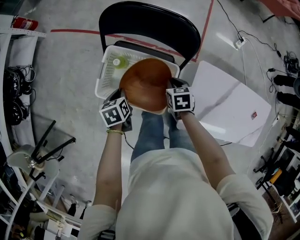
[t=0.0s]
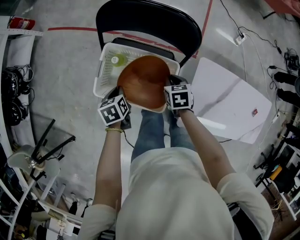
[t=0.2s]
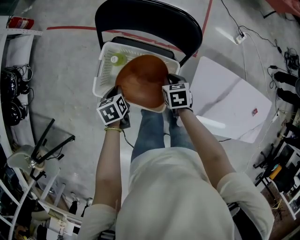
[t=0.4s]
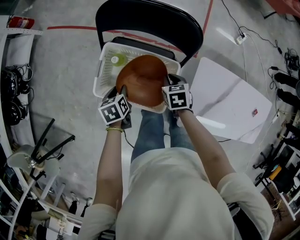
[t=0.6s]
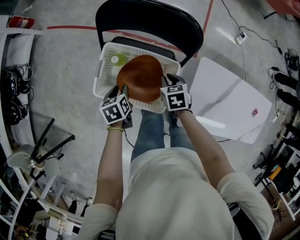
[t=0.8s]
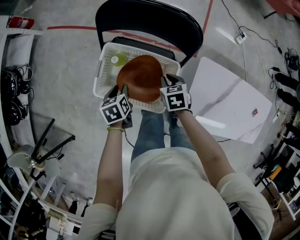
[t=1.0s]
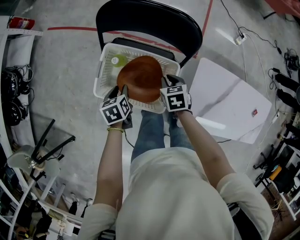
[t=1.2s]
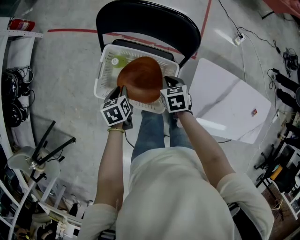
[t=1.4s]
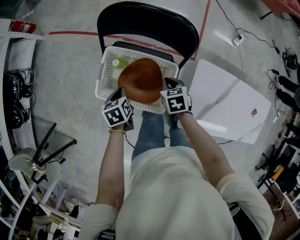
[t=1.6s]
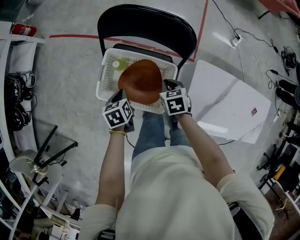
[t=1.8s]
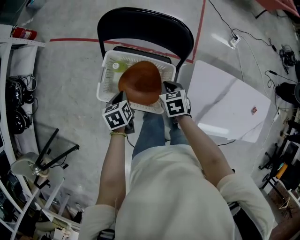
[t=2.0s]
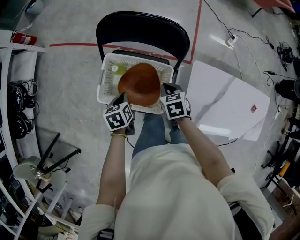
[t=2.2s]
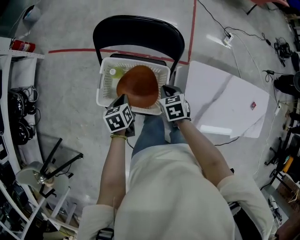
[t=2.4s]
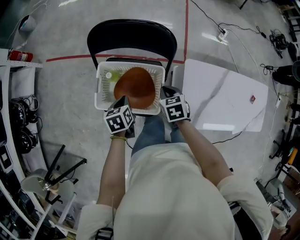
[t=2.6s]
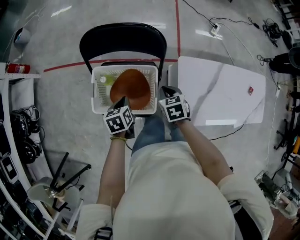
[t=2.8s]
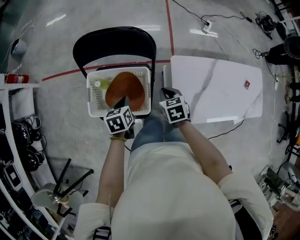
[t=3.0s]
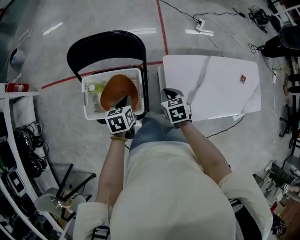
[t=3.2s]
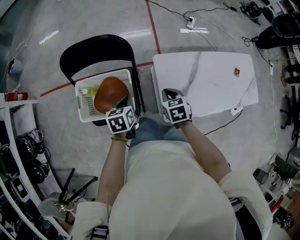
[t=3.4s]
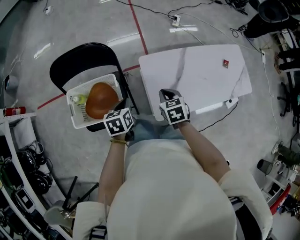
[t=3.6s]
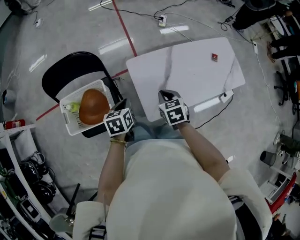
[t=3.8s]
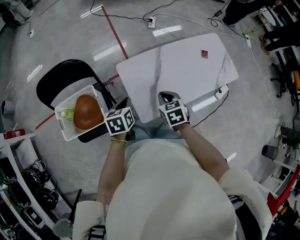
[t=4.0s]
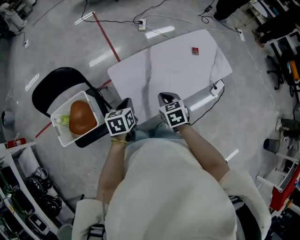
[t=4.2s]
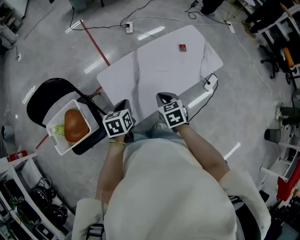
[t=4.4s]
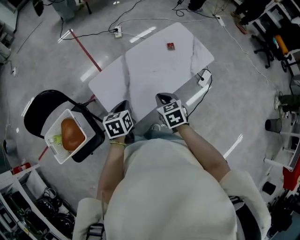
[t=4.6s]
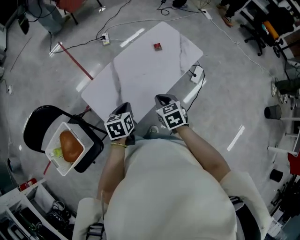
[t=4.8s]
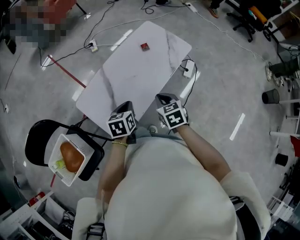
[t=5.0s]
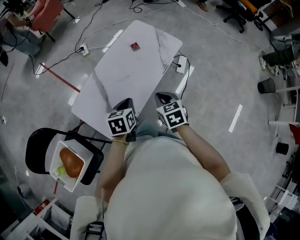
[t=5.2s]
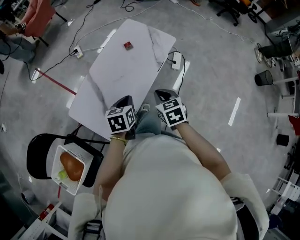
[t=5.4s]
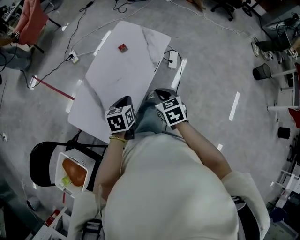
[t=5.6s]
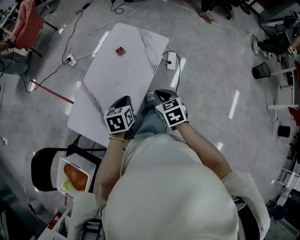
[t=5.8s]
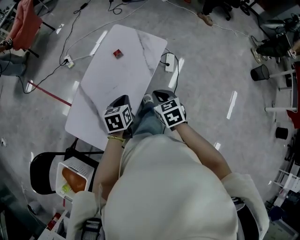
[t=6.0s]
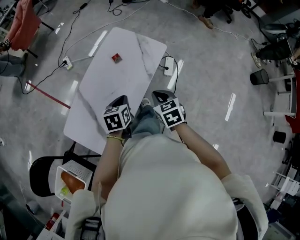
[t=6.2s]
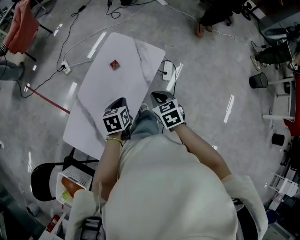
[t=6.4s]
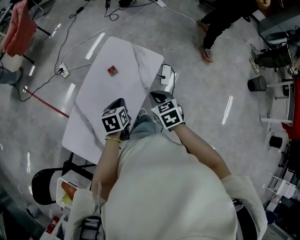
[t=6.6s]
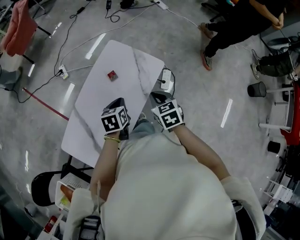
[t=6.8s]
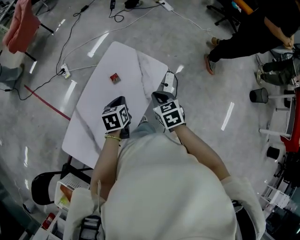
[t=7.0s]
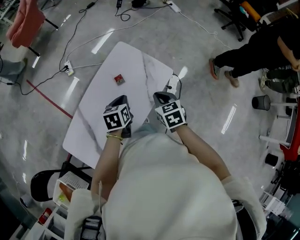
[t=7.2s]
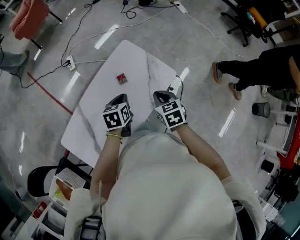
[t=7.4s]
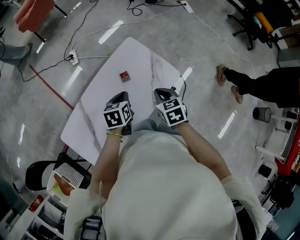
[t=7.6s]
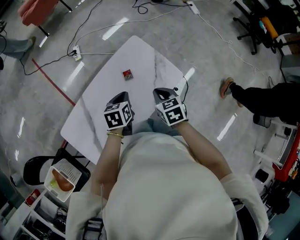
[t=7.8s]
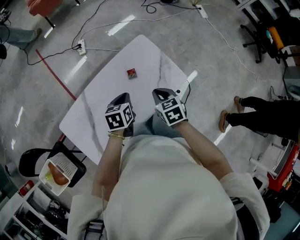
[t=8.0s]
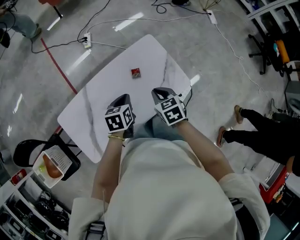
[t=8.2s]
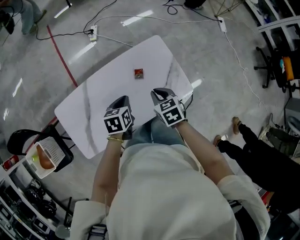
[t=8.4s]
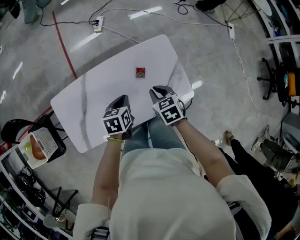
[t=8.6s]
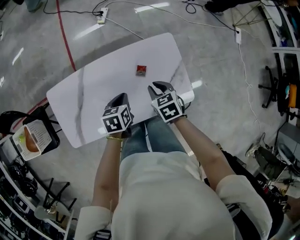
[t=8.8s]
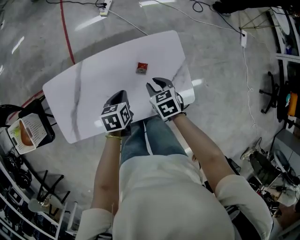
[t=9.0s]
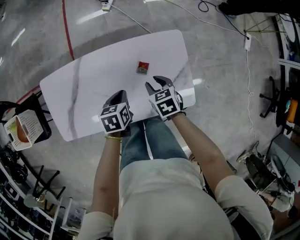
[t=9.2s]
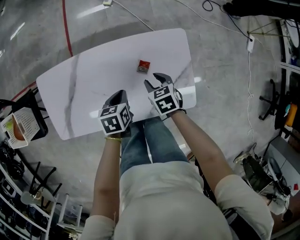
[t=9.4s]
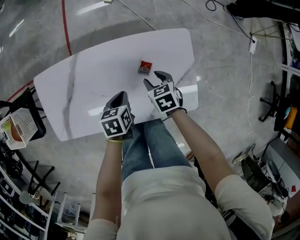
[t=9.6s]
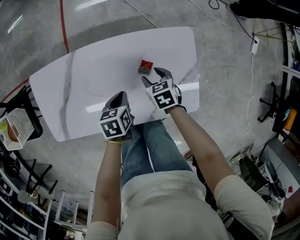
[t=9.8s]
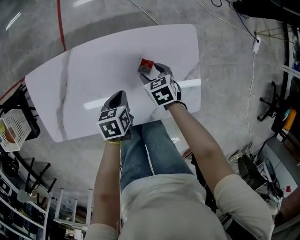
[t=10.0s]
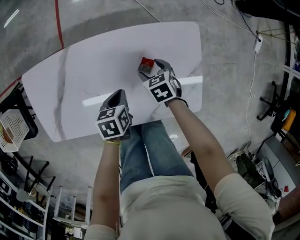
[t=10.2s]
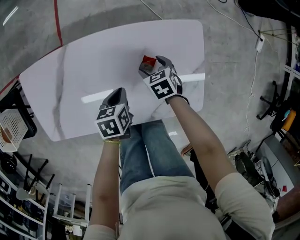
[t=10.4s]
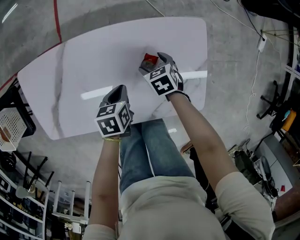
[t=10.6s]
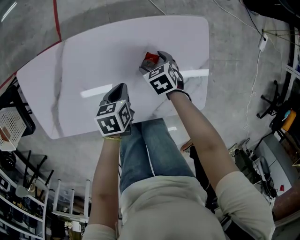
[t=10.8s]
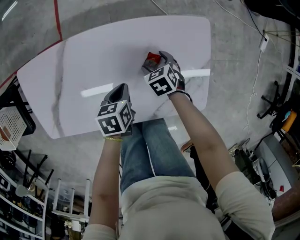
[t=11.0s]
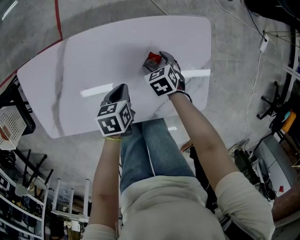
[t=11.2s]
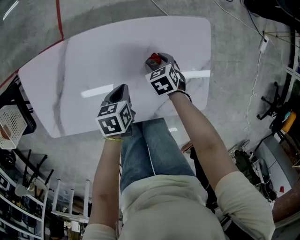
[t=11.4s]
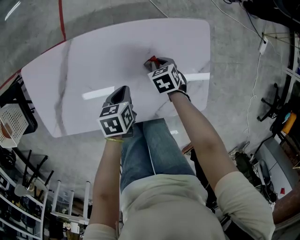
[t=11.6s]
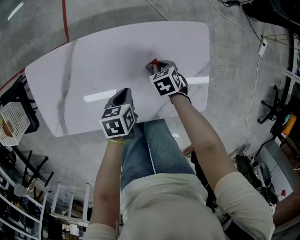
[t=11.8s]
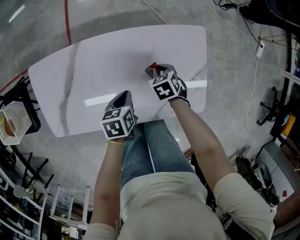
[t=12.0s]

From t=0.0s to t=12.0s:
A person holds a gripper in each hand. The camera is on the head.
From t=0.0s to t=1.6s: The left gripper opens and closes again.
From t=1.6s to t=3.0s: The right gripper travels to the right, backward and upward by roughly 15 cm; the left gripper moves to the right and upward, some 15 cm, and changes its angle by about 20 degrees.
From t=3.0s to t=4.4s: The two grippers travel together, roughly 40 cm. The right gripper turns by roughly 30 degrees. The left gripper rotates some 30 degrees.
From t=4.4s to t=6.0s: The right gripper changes place by approximately 25 cm, and turns by about 30 degrees. The left gripper moves roughly 30 cm, and changes its angle by roughly 30 degrees.
From t=6.0s to t=7.6s: The two grippers go some 25 cm forward.
From t=7.6s to t=9.0s: The left gripper heads downward, covering some 10 cm, and rotates roughly 40 degrees, while the right gripper shifts by about 20 cm, and rotates roughly 40 degrees.
From t=9.0s to t=10.4s: The right gripper heads downward and forward, covering about 20 cm, and opens, while the left gripper shifts about 15 cm downward.
From t=10.4s to t=12.0s: The right gripper closes up.

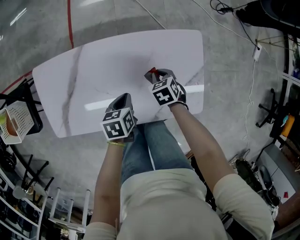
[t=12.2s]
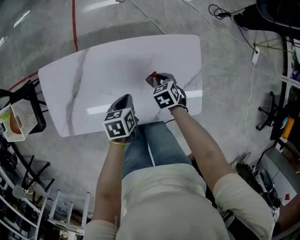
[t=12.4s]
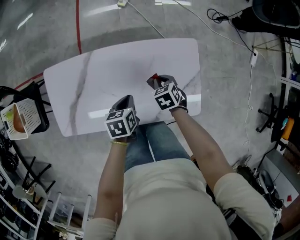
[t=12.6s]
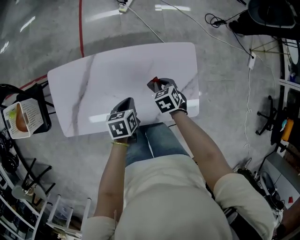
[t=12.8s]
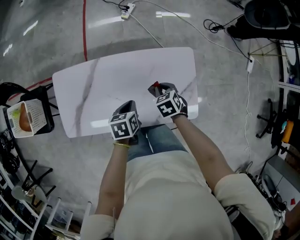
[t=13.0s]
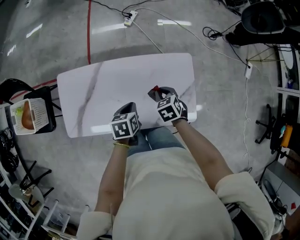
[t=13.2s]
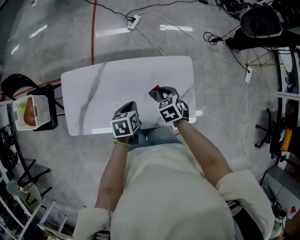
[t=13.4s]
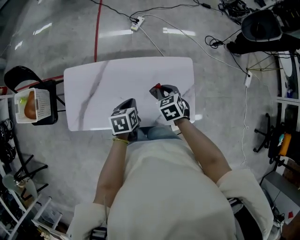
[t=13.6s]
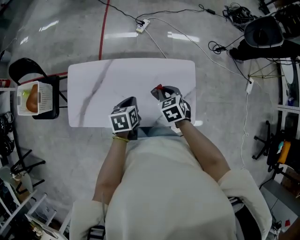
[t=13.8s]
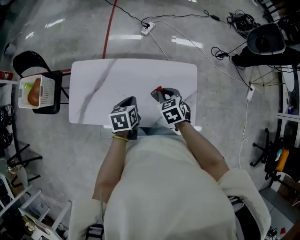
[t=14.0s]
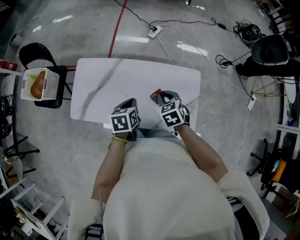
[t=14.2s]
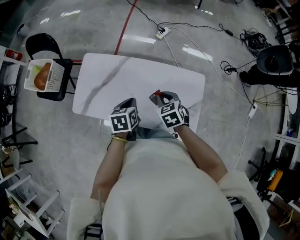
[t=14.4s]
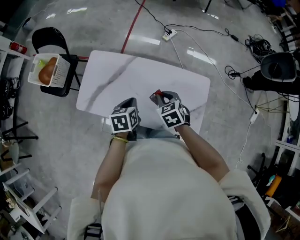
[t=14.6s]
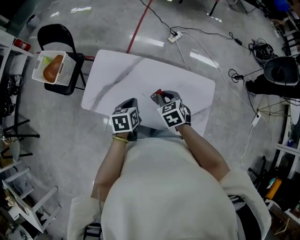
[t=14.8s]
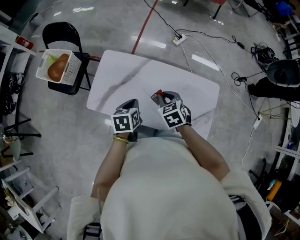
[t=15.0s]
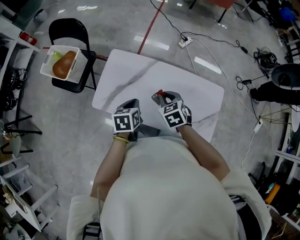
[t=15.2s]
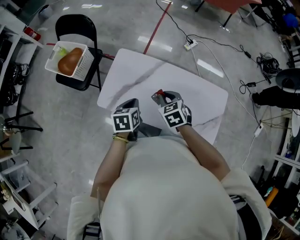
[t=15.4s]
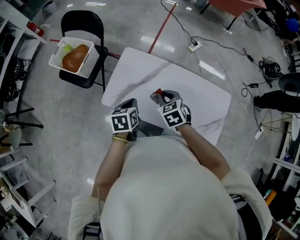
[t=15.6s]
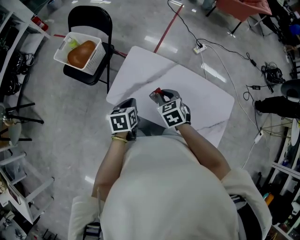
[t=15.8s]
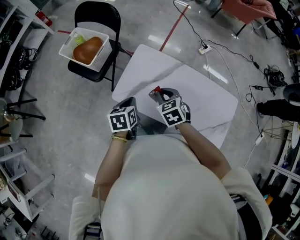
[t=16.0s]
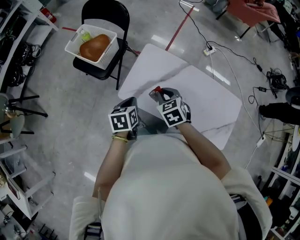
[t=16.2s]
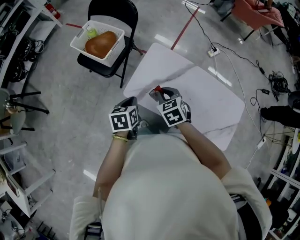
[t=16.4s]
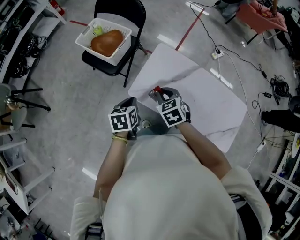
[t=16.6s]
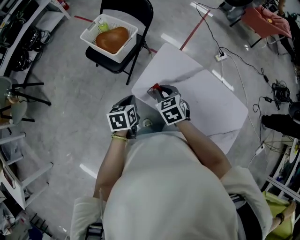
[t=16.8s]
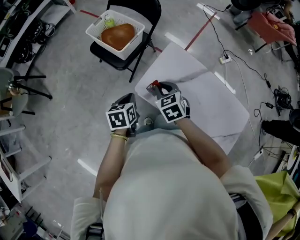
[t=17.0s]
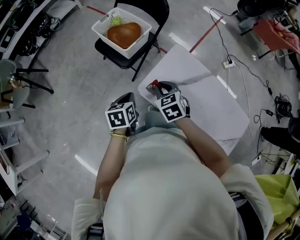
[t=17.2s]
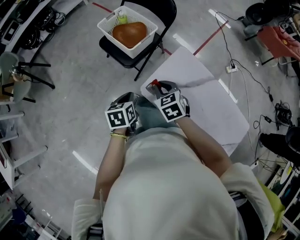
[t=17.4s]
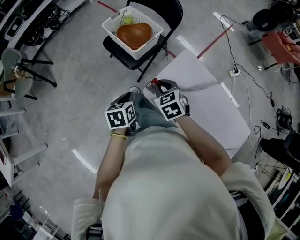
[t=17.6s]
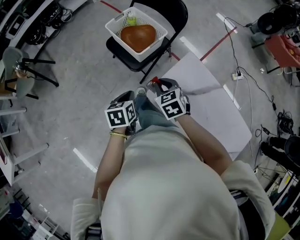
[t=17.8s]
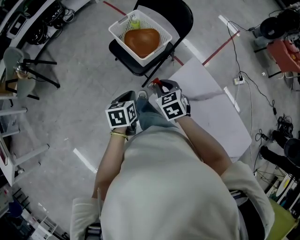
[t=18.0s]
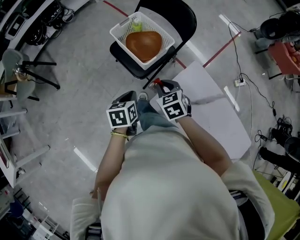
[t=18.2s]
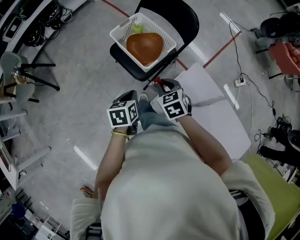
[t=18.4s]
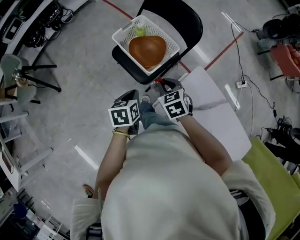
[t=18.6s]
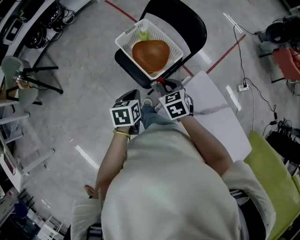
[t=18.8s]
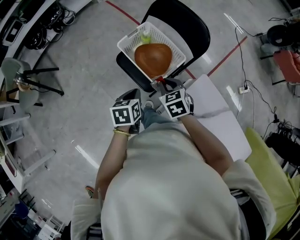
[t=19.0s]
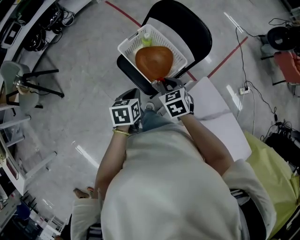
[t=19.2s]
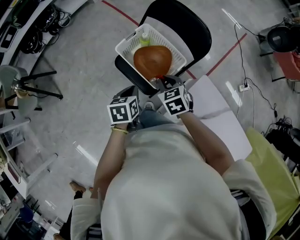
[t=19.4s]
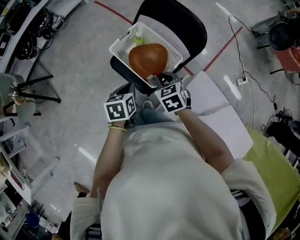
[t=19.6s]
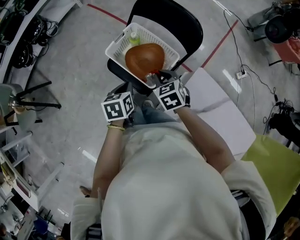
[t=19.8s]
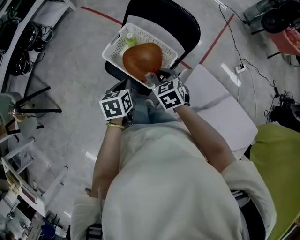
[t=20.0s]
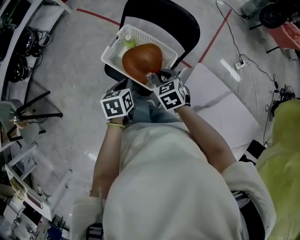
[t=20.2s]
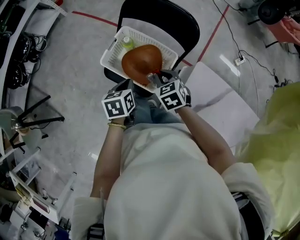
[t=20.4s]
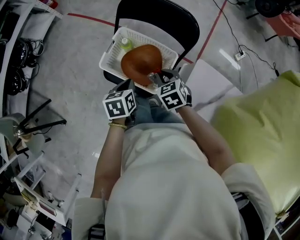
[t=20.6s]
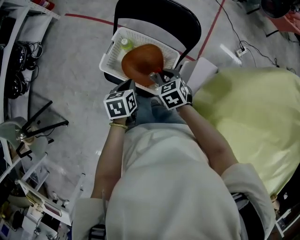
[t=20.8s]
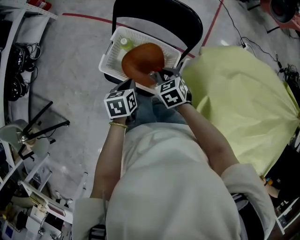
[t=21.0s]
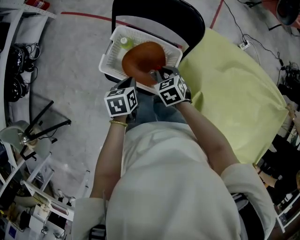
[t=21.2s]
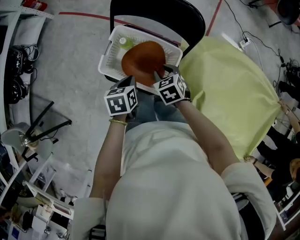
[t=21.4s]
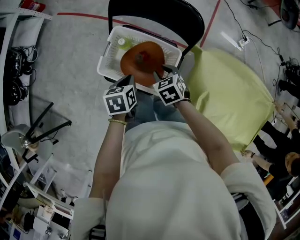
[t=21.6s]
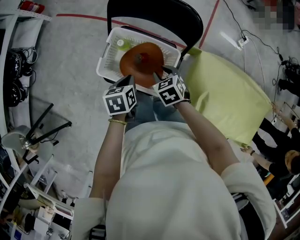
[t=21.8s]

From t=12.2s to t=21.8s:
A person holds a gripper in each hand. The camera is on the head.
From t=12.2s to t=13.8s: Both grippers move upward, roughly 20 cm.
From t=13.8s to t=15.4s: Both grippers move to the left, approximately 30 cm. The right gripper turns by about 20 degrees.
From t=15.4s to t=17.0s: Both grippers move to the left, roughly 30 cm.
From t=17.0s to t=18.6s: Both grippers travel together forward and to the left, about 25 cm.
From t=18.6s to t=20.2s: Both grippers move forward, about 15 cm.
From t=20.2s to t=21.8s: The left gripper goes about 10 cm forward and downward, while the right gripper shifts some 10 cm downward and forward.

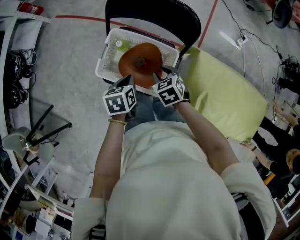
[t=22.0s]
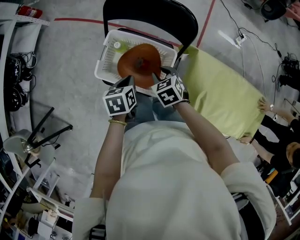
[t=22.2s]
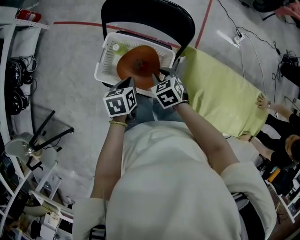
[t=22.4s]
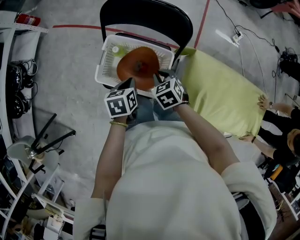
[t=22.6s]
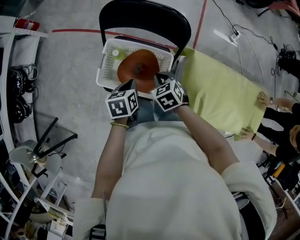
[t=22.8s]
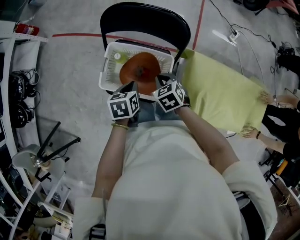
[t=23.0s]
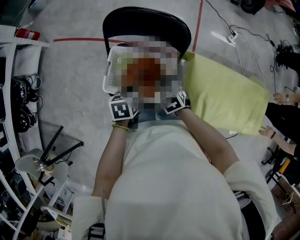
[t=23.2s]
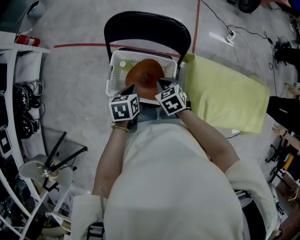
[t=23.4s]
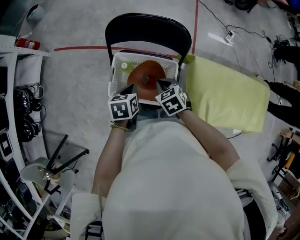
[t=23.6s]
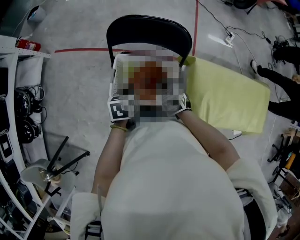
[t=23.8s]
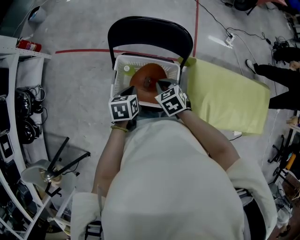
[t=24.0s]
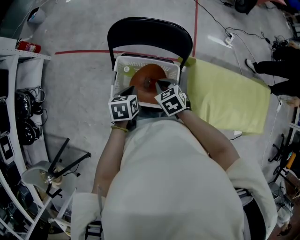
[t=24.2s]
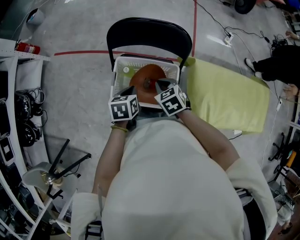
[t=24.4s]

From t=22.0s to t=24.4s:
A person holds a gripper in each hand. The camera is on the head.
From t=22.0s to t=23.2s: The right gripper closes its fingers.
From t=23.2s to t=24.4s: The grippers move only a little.
